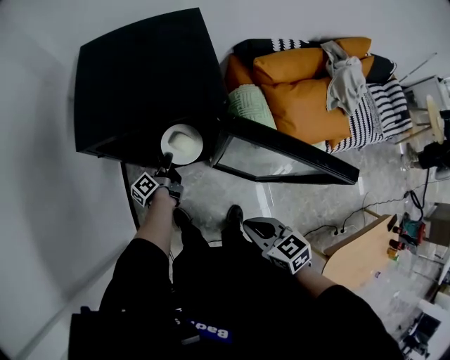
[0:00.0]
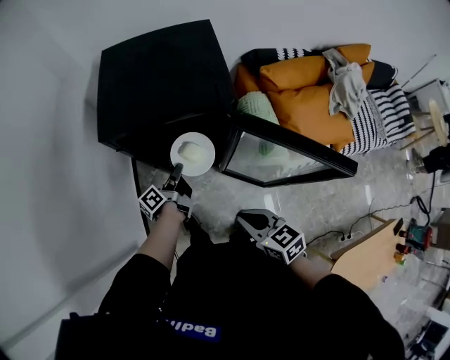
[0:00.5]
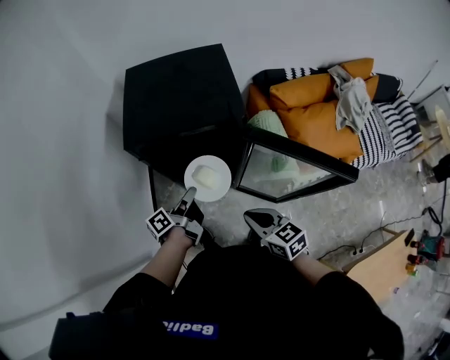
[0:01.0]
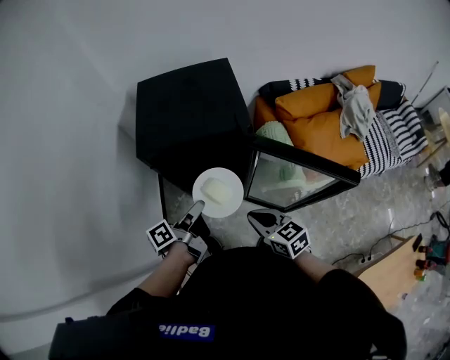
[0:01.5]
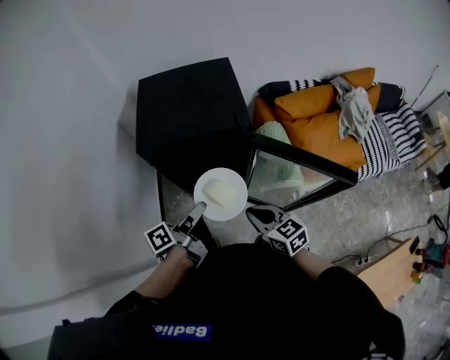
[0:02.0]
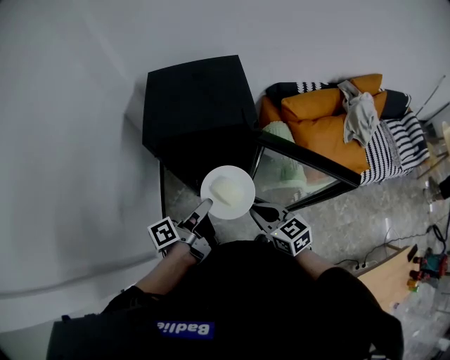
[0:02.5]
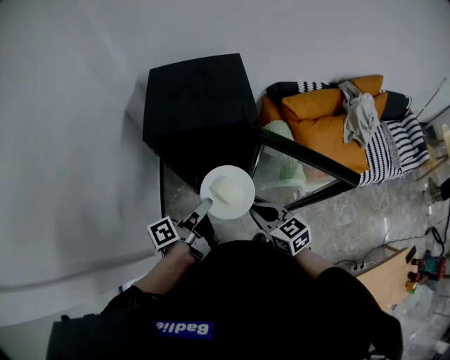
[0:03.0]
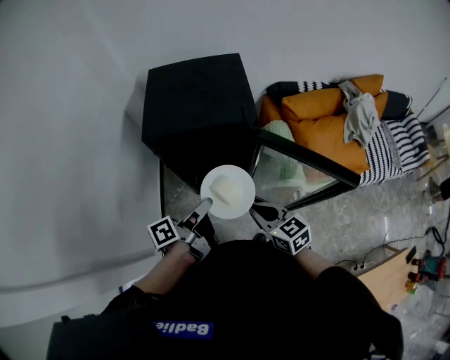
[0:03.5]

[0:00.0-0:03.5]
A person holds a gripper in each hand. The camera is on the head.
0:00.0 to 0:02.0: The left gripper shifts about 30 cm upward and backward; the right gripper shifts about 10 cm upward and forward.
0:02.0 to 0:03.5: The grippers move only a little.

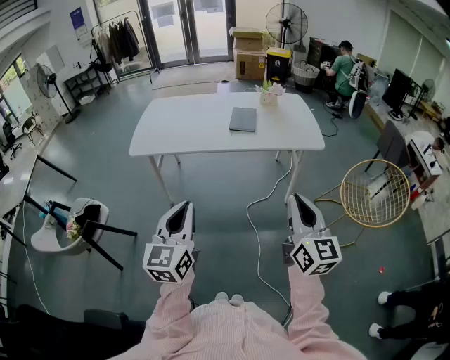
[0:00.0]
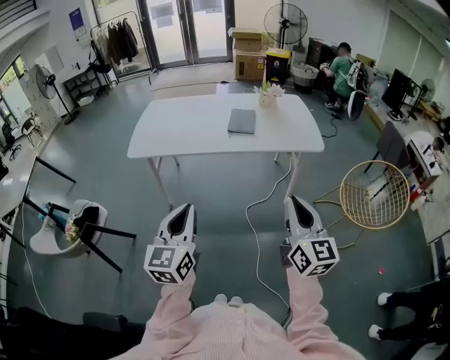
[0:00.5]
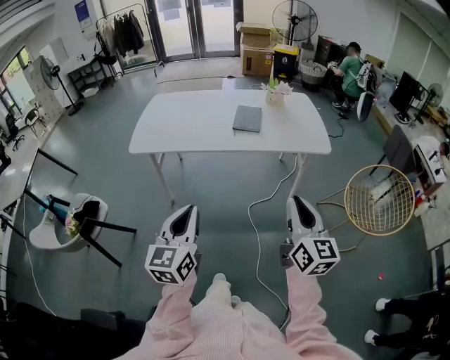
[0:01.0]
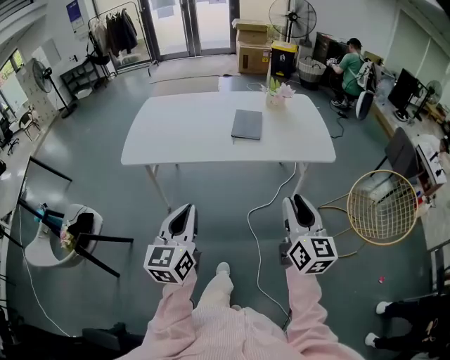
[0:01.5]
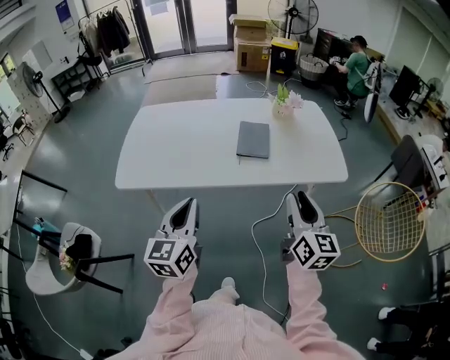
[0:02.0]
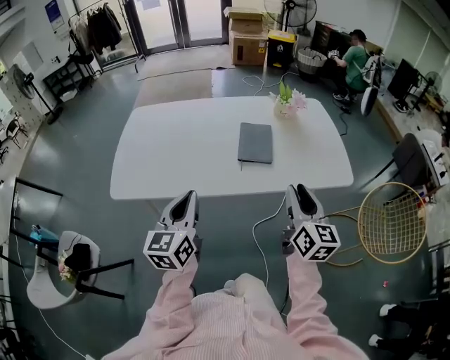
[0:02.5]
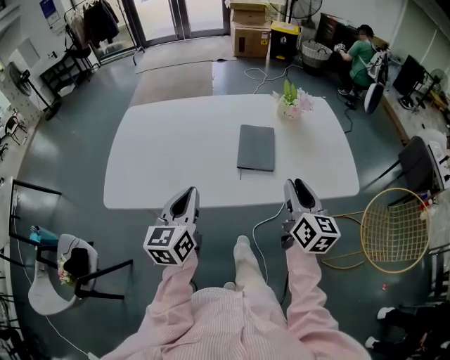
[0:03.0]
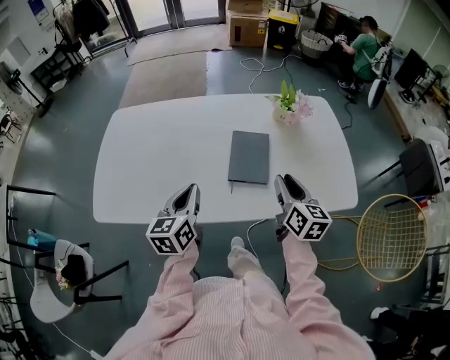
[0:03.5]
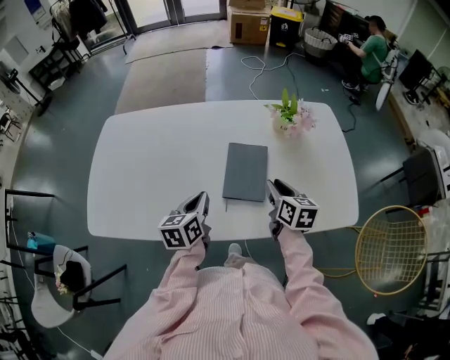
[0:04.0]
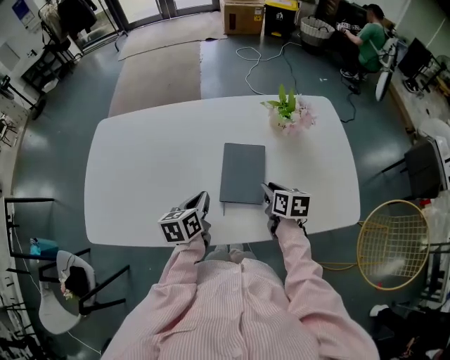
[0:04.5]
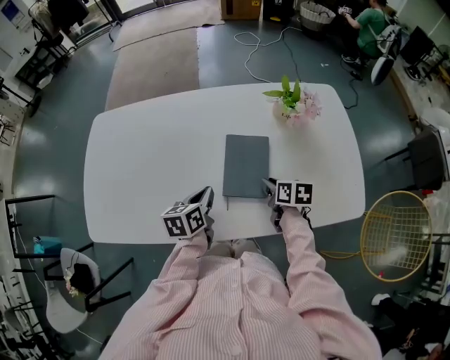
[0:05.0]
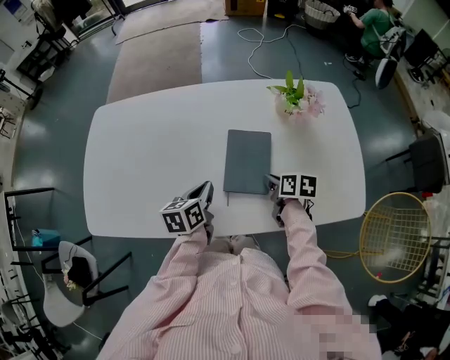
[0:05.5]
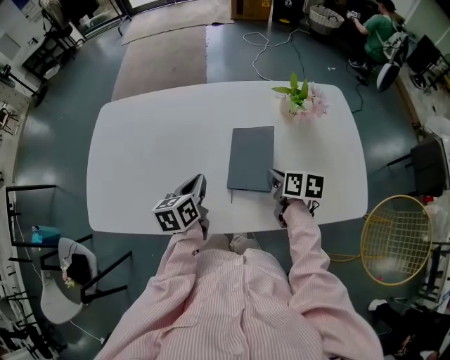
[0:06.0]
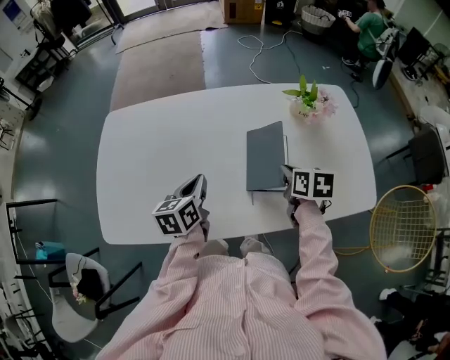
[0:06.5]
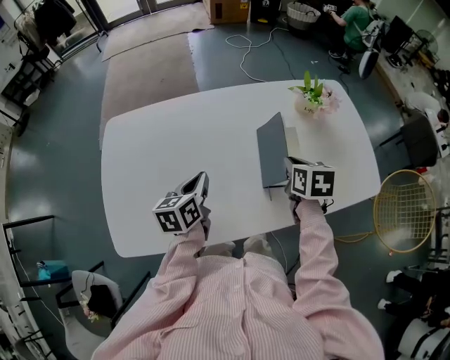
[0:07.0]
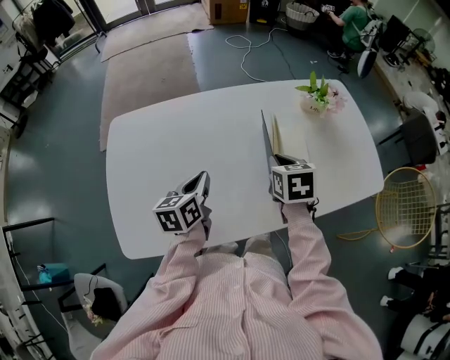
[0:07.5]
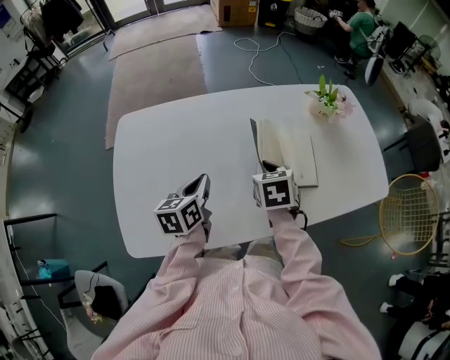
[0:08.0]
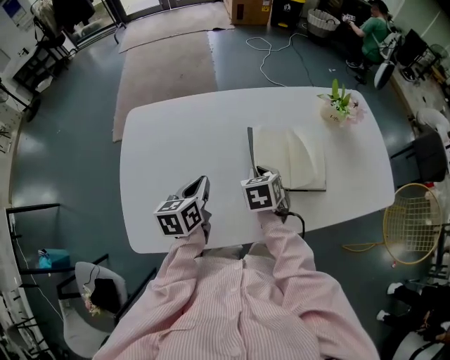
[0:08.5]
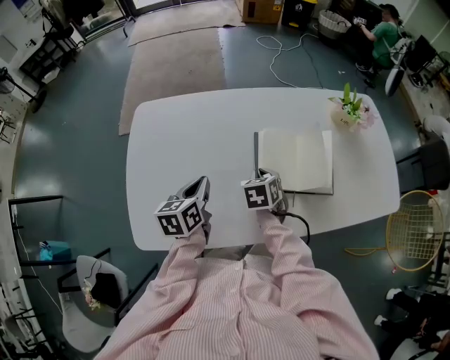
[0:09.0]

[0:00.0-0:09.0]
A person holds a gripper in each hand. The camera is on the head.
0:00.0 to 0:02.0: Both grippers travel together forward, roughly 30 cm. The right gripper opens.
0:02.0 to 0:04.5: Both grippers travel together forward and downward, about 40 cm. The right gripper tilts its fingers about 40 degrees downward; the left gripper rotates about 40 degrees.
0:04.5 to 0:07.0: The right gripper travels to the left and upward by approximately 15 cm, while the left gripper is displaced to the left by roughly 15 cm.
0:07.0 to 0:09.0: The right gripper goes some 25 cm to the left and downward, and rotates about 20 degrees. The left gripper moves to the left, approximately 10 cm.

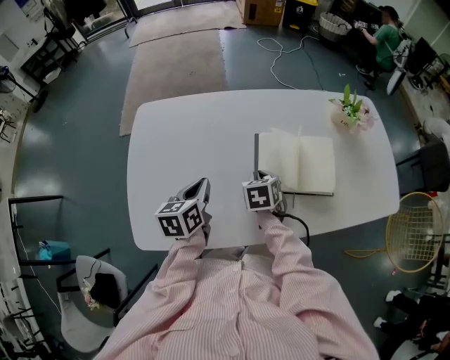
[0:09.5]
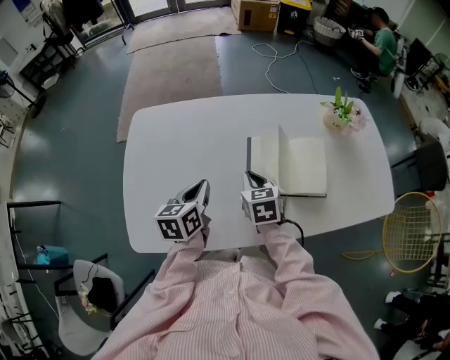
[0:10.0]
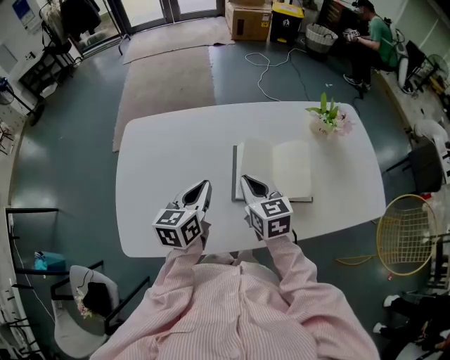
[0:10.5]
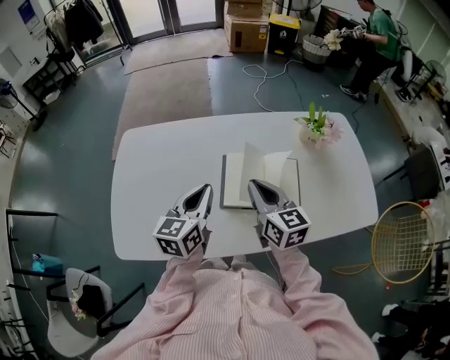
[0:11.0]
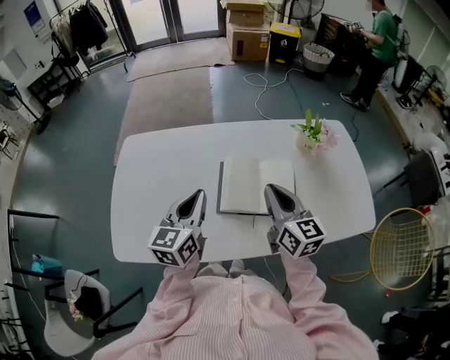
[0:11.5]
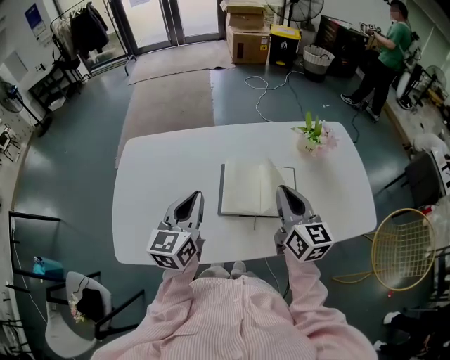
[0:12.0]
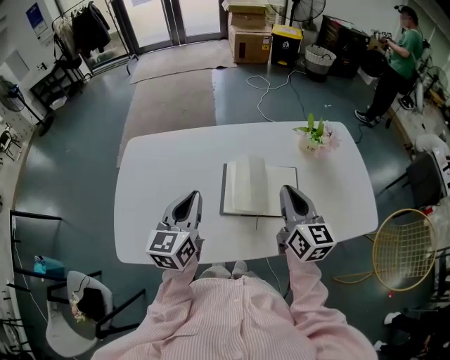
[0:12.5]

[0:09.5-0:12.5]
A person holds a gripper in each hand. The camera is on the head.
0:09.5 to 0:11.0: The right gripper shifts roughly 20 cm upward and to the right, and angles its fingers upward, by some 40 degrees, while the left gripper moves to the right and upward, roughly 15 cm, and swivels approximately 20 degrees.
0:11.0 to 0:12.5: The right gripper travels to the right by roughly 10 cm.
